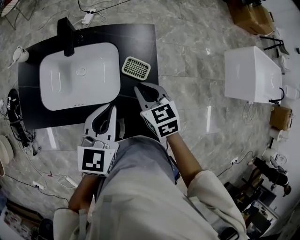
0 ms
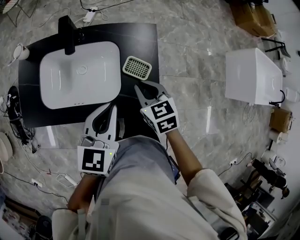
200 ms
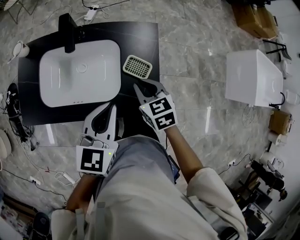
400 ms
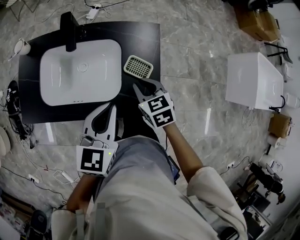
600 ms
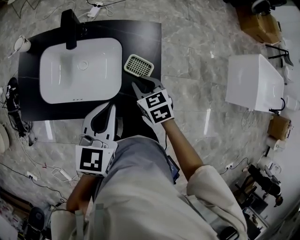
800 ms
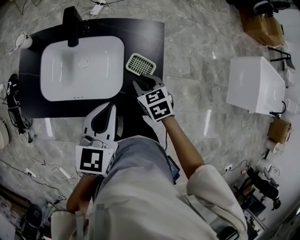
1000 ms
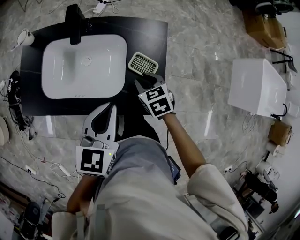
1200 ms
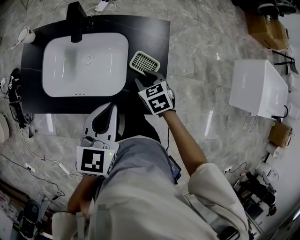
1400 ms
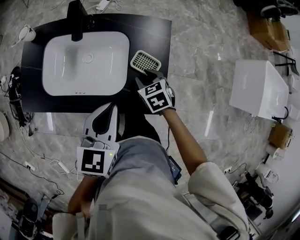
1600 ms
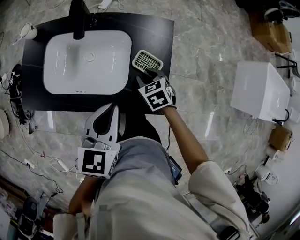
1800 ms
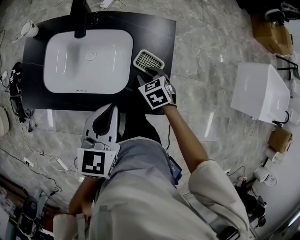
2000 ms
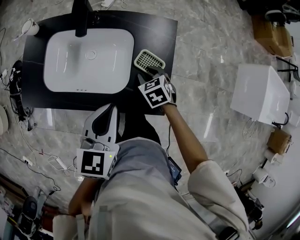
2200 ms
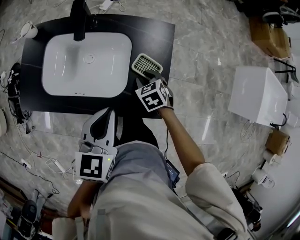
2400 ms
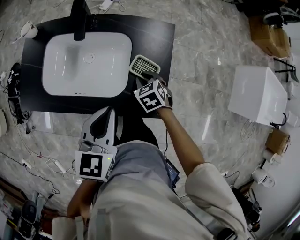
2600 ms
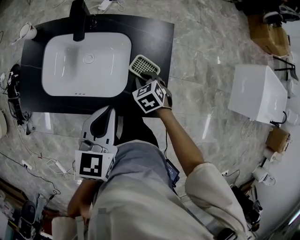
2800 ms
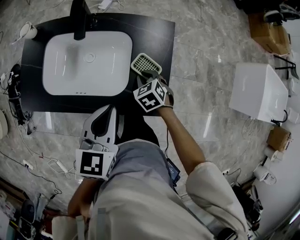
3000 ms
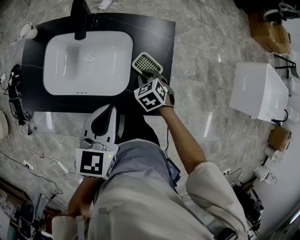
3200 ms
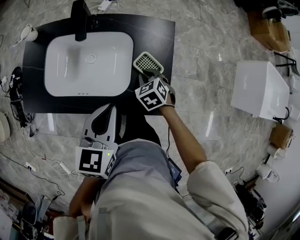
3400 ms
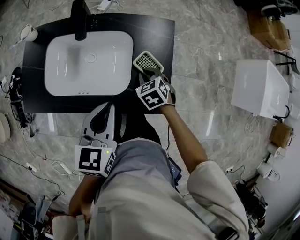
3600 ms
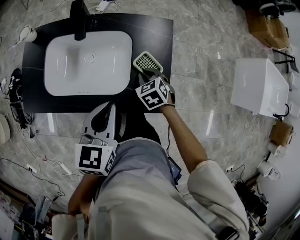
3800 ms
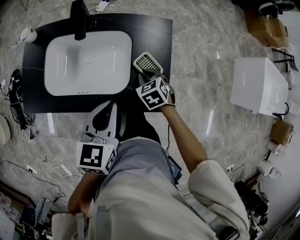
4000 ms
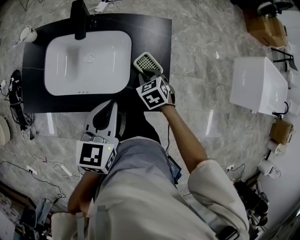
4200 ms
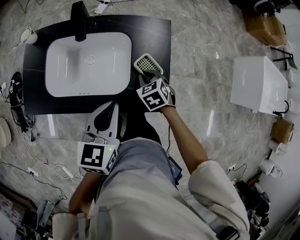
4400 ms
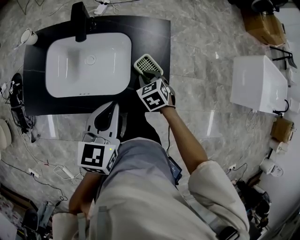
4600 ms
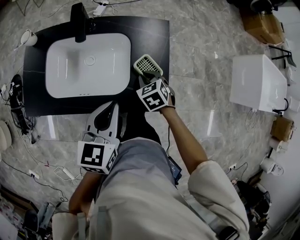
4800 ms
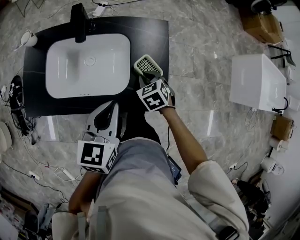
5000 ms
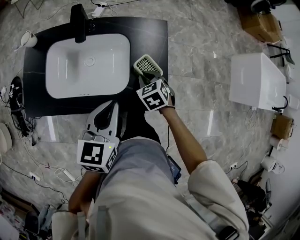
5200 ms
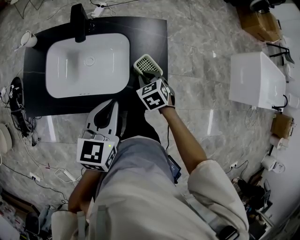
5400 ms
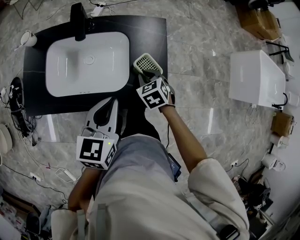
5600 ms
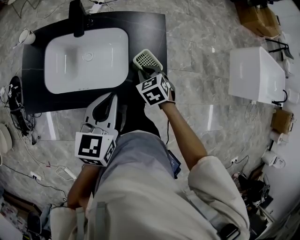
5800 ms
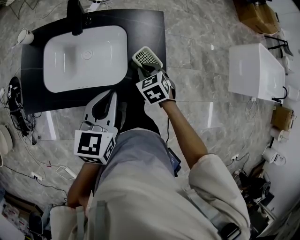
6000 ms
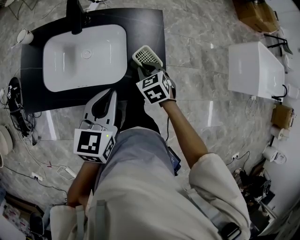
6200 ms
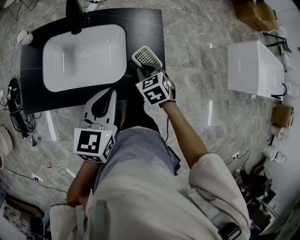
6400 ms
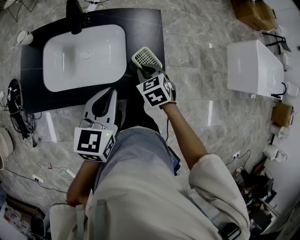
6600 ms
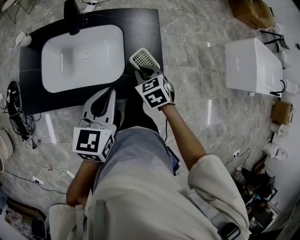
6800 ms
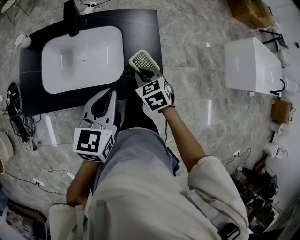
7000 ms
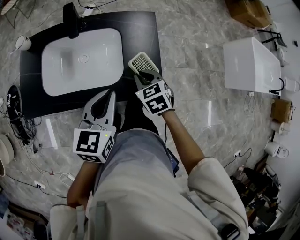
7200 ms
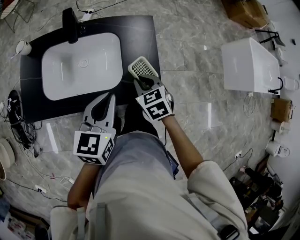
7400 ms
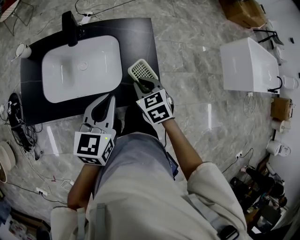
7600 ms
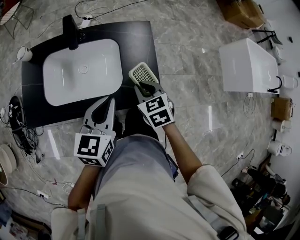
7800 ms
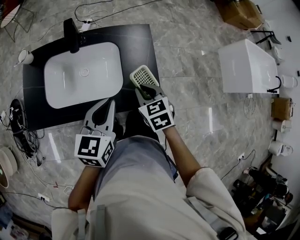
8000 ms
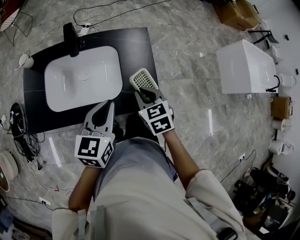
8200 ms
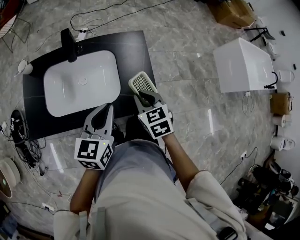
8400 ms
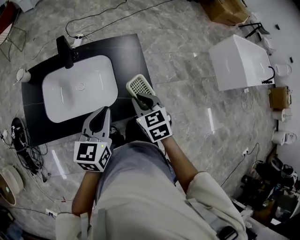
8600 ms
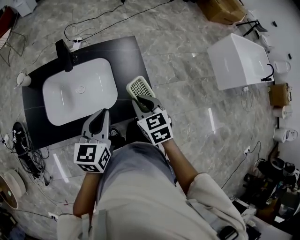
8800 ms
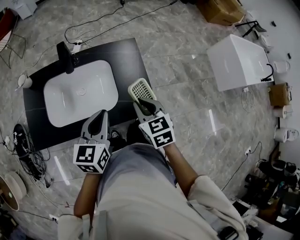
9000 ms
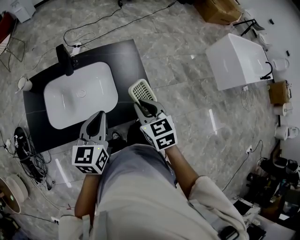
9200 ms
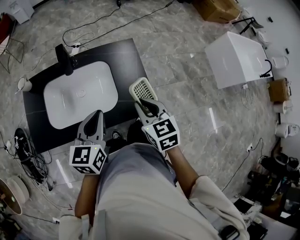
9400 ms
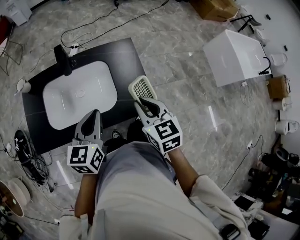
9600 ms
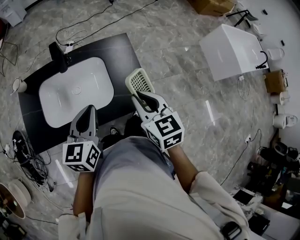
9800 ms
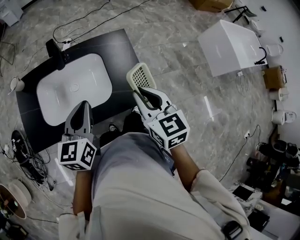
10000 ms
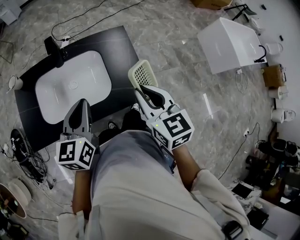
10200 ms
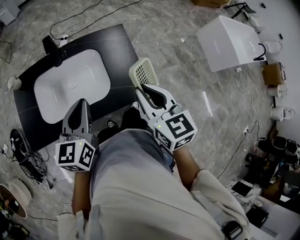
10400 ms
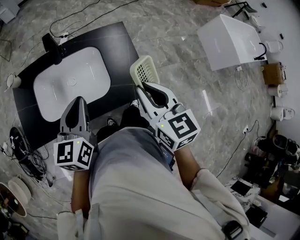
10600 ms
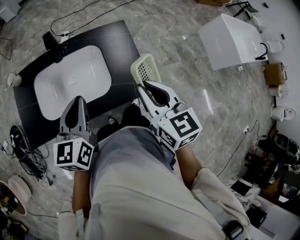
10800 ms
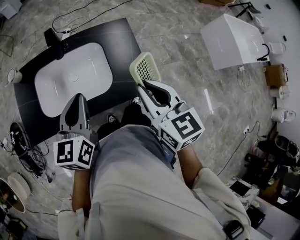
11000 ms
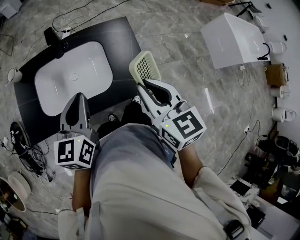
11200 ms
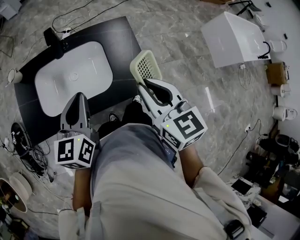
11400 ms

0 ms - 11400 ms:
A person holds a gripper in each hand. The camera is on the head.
0 ms - 1400 ms: The right gripper heads downward, covering approximately 10 cm, and opens.
1400 ms - 5600 ms: The grippers move only a little.
5600 ms - 7200 ms: The right gripper goes some 5 cm upward.
7200 ms - 8600 ms: The right gripper travels upward by roughly 10 cm.
8600 ms - 10000 ms: The right gripper goes some 10 cm upward. Meanwhile the left gripper shifts approximately 5 cm to the left.
10000 ms - 11400 ms: There are only small adjustments of the grippers.

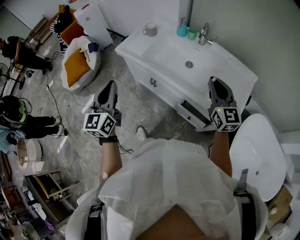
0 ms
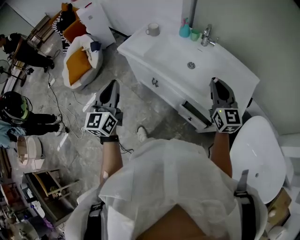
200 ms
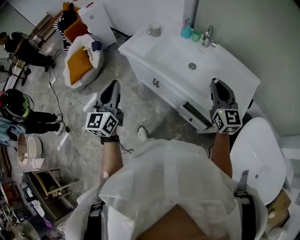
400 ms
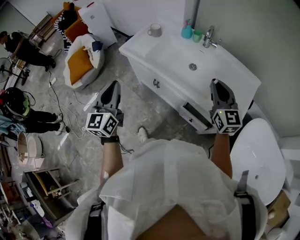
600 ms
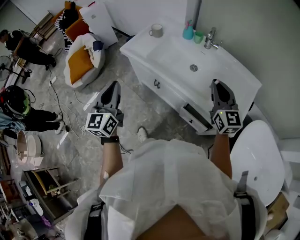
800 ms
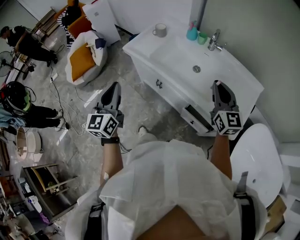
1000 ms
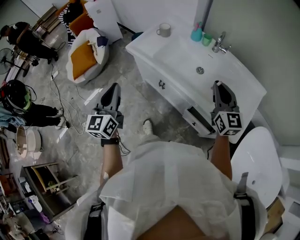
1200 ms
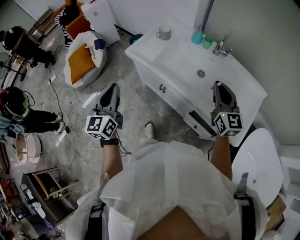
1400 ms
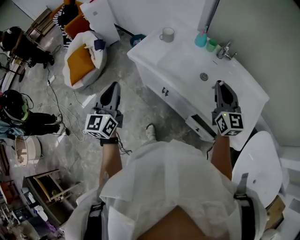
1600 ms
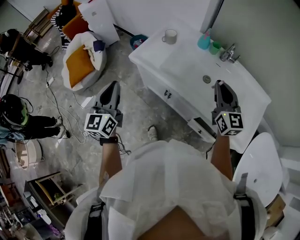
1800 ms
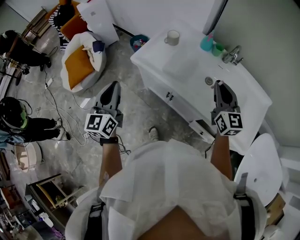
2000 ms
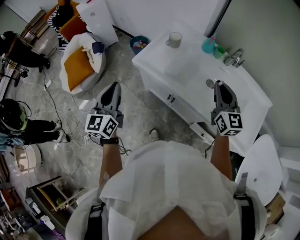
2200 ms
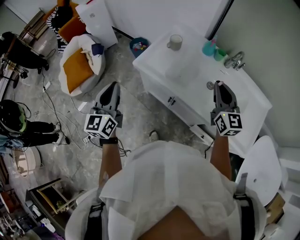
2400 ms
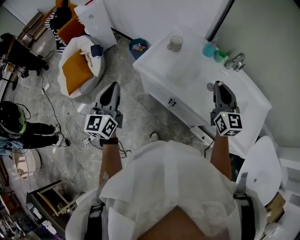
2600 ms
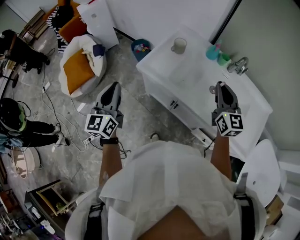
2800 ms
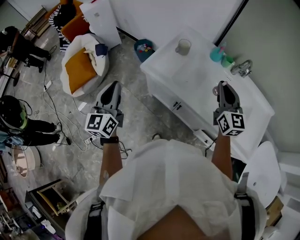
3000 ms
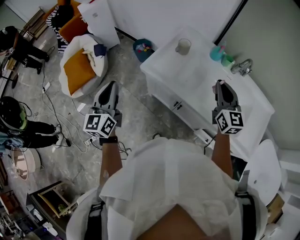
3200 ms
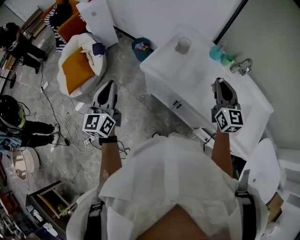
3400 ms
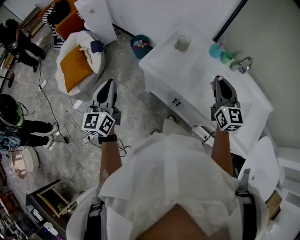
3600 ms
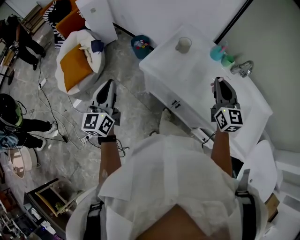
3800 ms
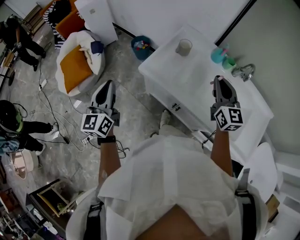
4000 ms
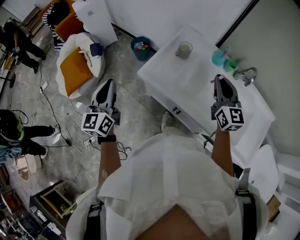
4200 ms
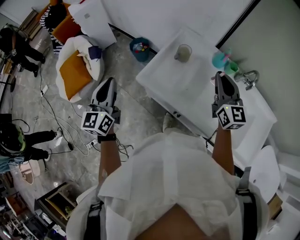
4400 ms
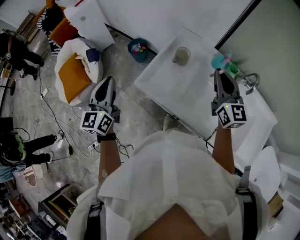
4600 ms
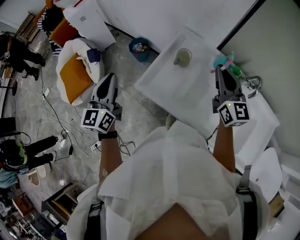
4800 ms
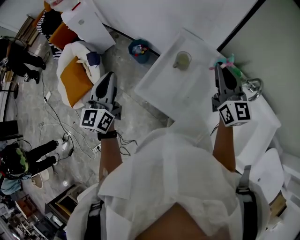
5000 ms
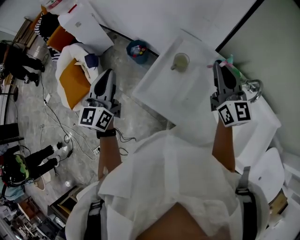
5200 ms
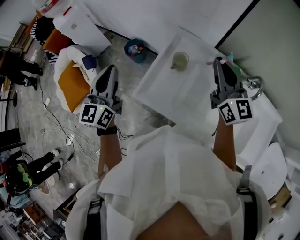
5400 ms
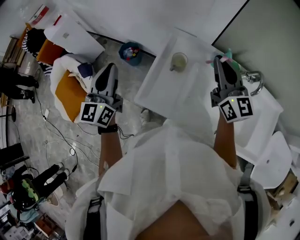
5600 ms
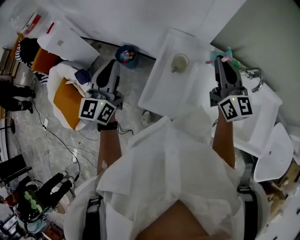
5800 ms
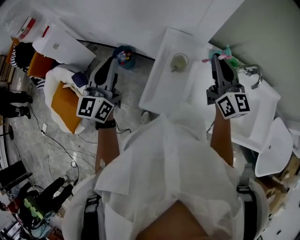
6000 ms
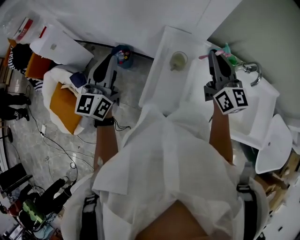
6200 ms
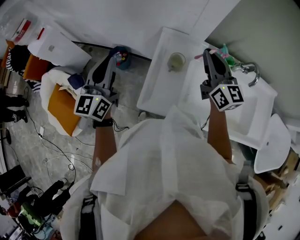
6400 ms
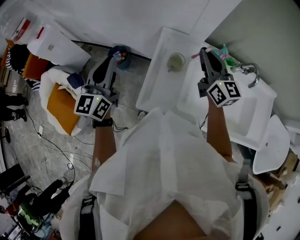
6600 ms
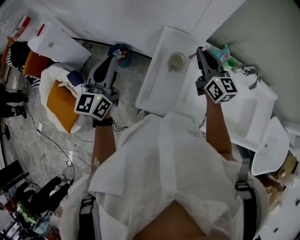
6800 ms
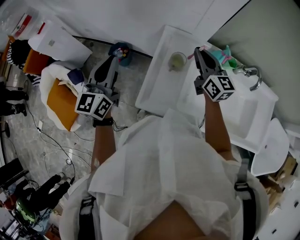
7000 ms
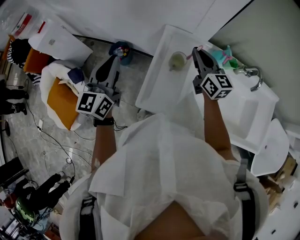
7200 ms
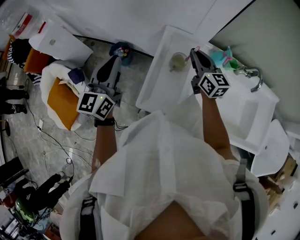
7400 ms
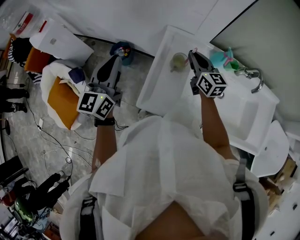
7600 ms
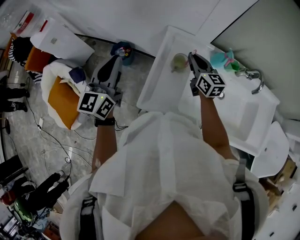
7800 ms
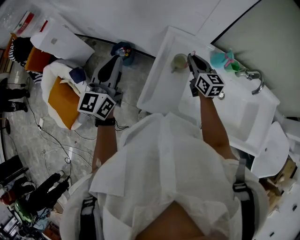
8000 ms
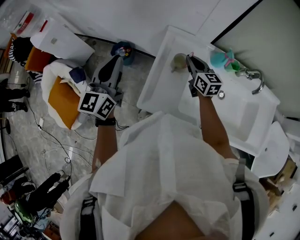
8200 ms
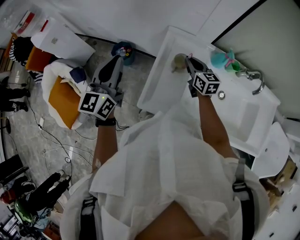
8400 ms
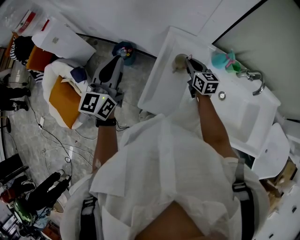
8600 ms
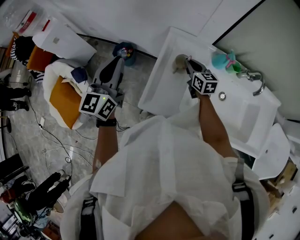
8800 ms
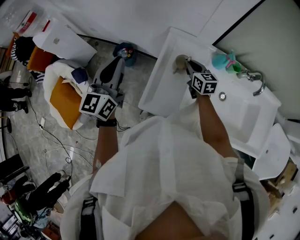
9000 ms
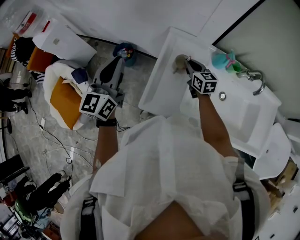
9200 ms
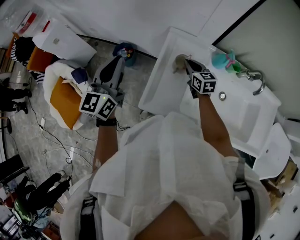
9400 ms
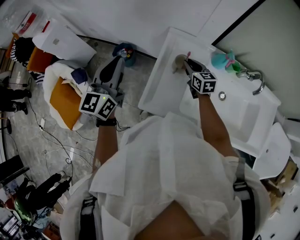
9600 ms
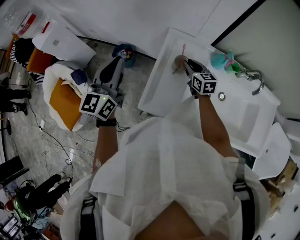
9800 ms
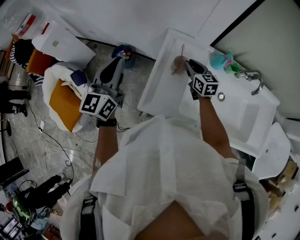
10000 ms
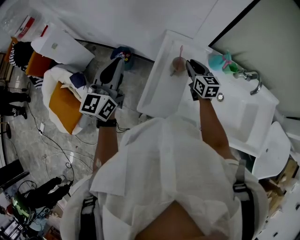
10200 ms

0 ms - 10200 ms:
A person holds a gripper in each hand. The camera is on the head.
0 ms - 1400 ms: The right gripper shifts some 10 cm forward and to the left, while the left gripper shifts approximately 10 cm to the left and forward.
1400 ms - 3000 ms: Both grippers travel together forward and to the left, about 20 cm.
3000 ms - 4400 ms: The two grippers go approximately 15 cm forward.
4400 ms - 5800 ms: The right gripper moves forward, approximately 15 cm. The left gripper moves forward, approximately 25 cm, and changes its angle by some 20 degrees.
5800 ms - 7200 ms: The right gripper goes approximately 15 cm downward and forward.
7200 ms - 8800 ms: The right gripper heads downward, covering roughly 15 cm.
8800 ms - 10200 ms: There are only small adjustments of the grippers.

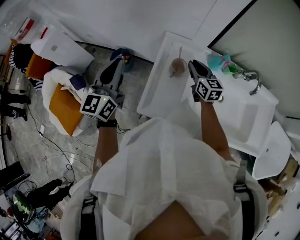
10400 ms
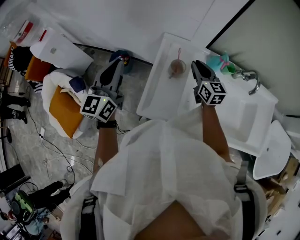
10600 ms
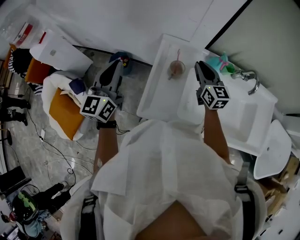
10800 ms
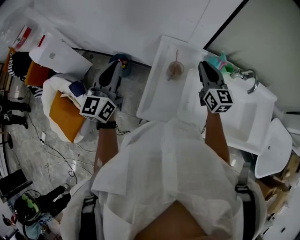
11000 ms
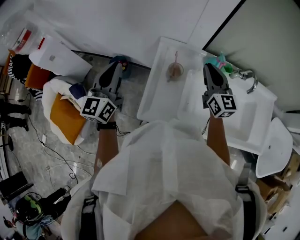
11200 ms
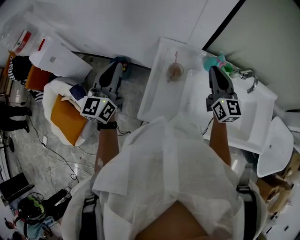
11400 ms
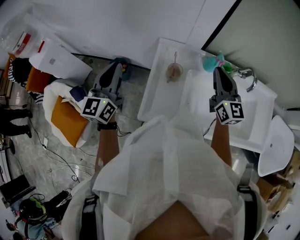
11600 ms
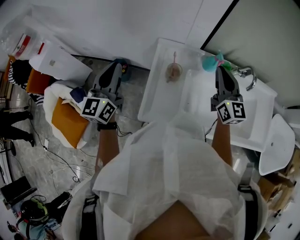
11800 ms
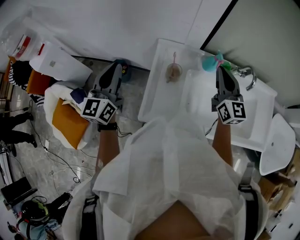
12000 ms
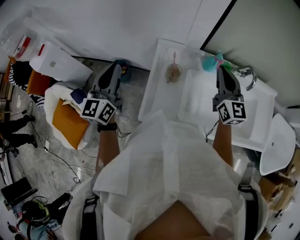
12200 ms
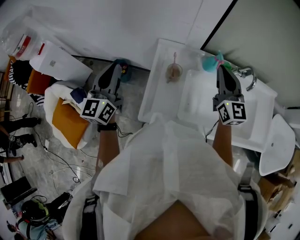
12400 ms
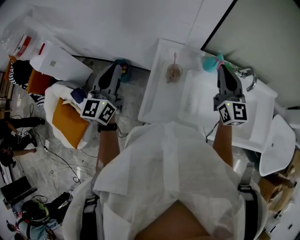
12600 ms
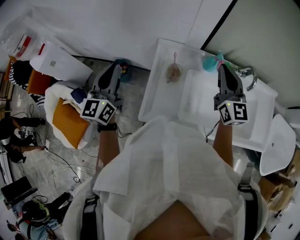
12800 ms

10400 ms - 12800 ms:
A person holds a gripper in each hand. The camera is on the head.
10400 ms - 11600 ms: The right gripper moves upward, to the right and backward, some 20 cm, and rotates some 20 degrees.
11600 ms - 12800 ms: The grippers move only a little.
